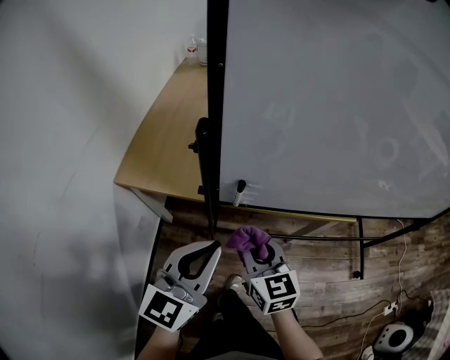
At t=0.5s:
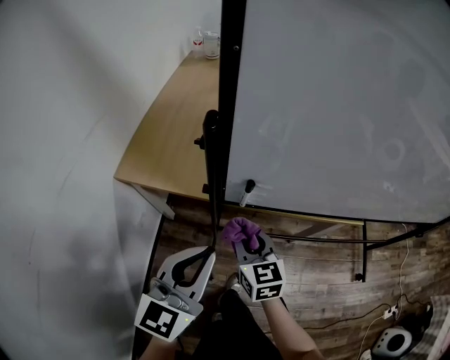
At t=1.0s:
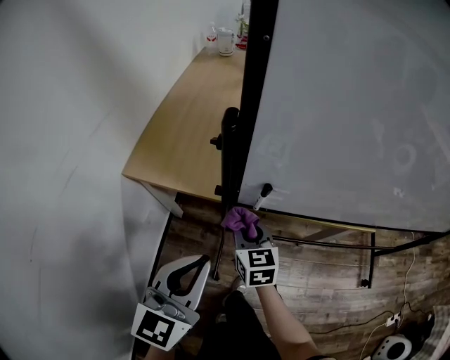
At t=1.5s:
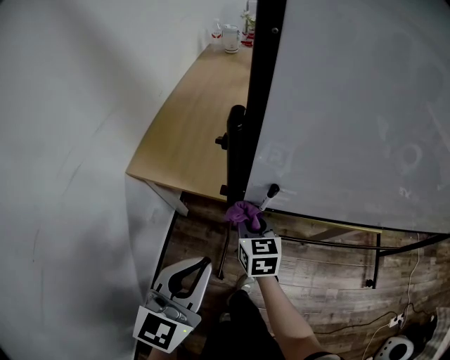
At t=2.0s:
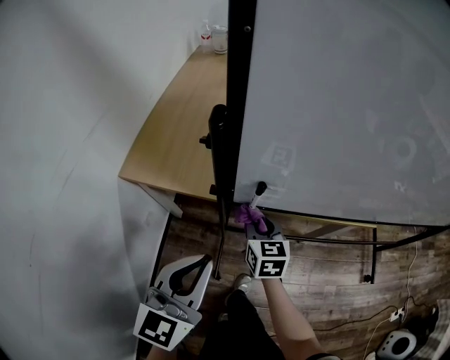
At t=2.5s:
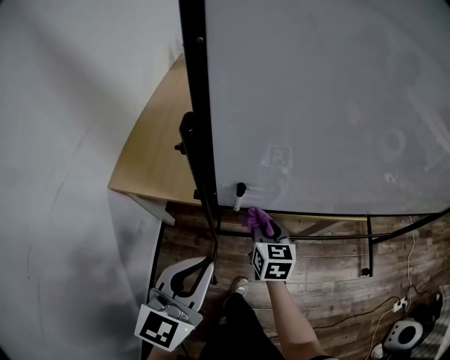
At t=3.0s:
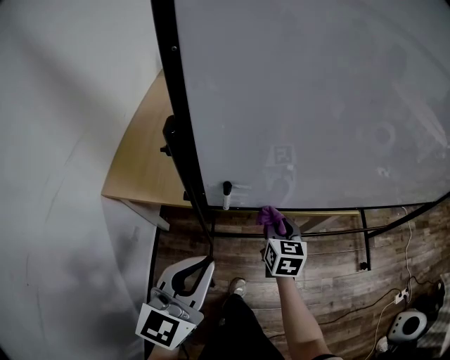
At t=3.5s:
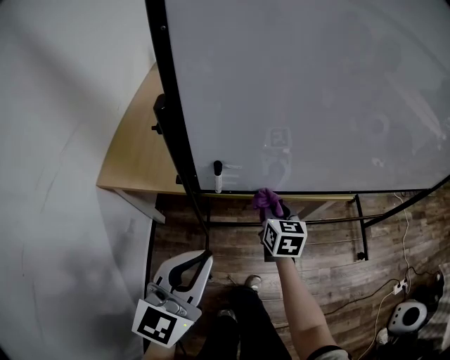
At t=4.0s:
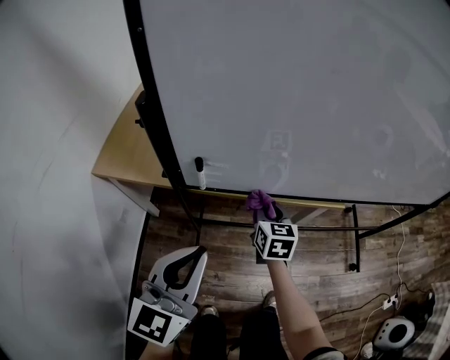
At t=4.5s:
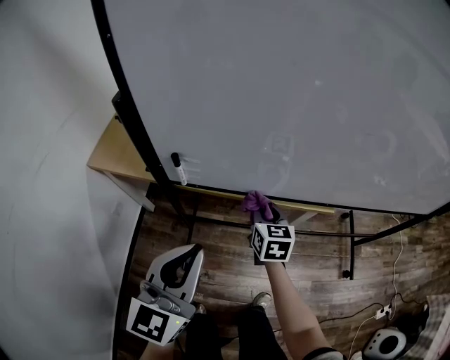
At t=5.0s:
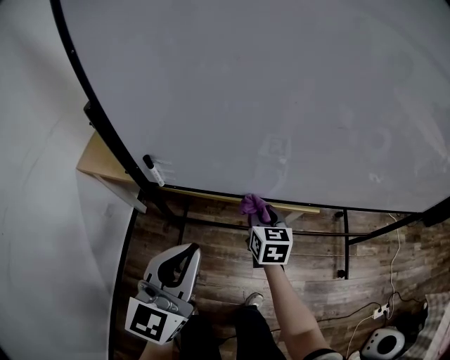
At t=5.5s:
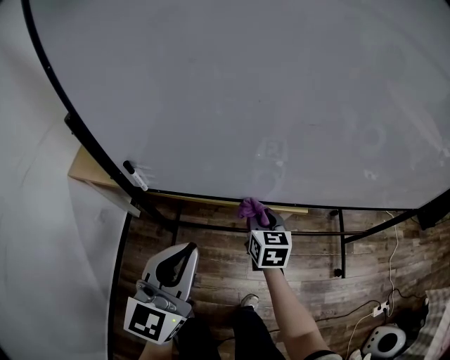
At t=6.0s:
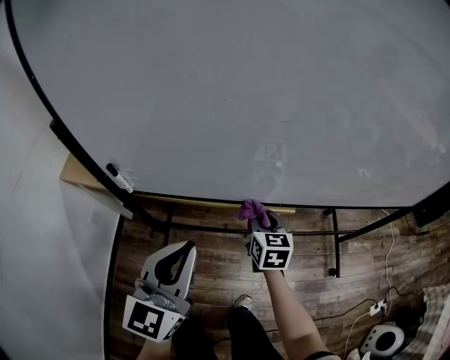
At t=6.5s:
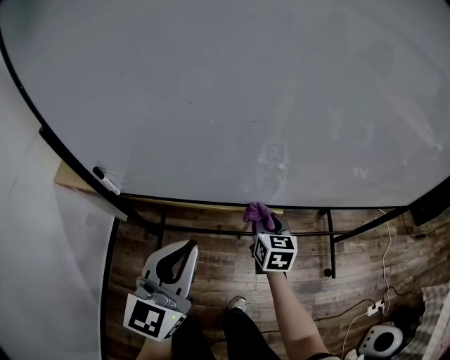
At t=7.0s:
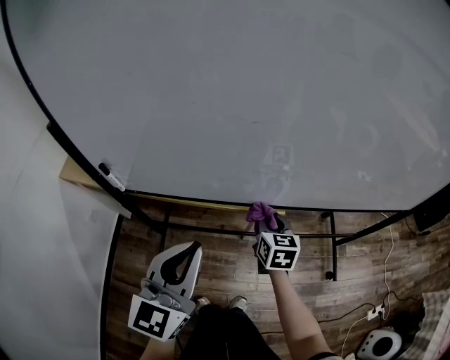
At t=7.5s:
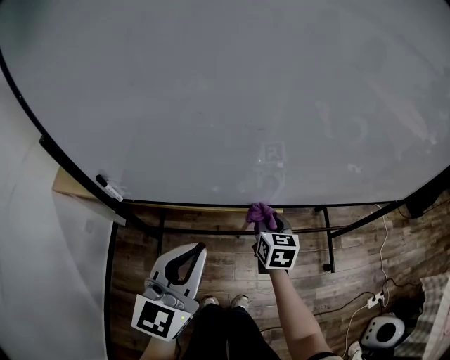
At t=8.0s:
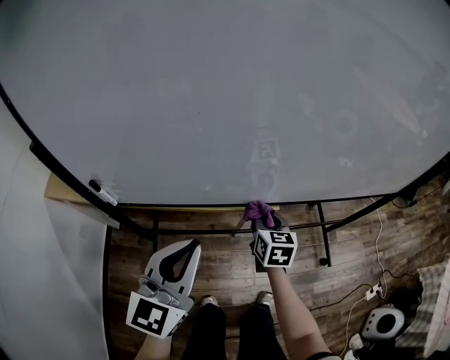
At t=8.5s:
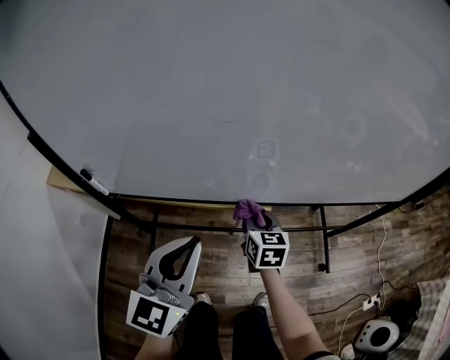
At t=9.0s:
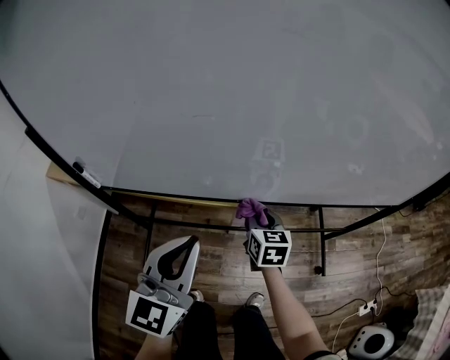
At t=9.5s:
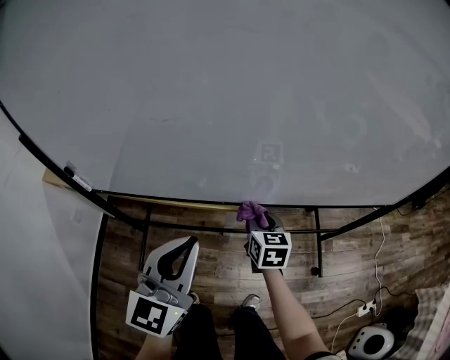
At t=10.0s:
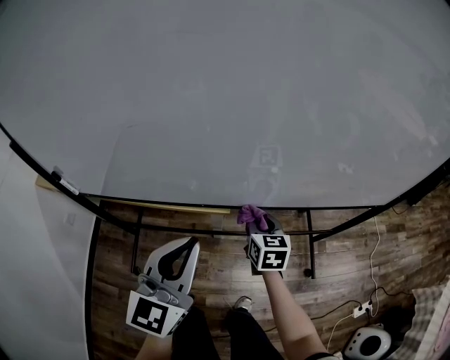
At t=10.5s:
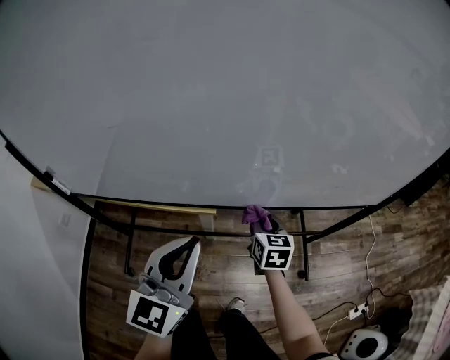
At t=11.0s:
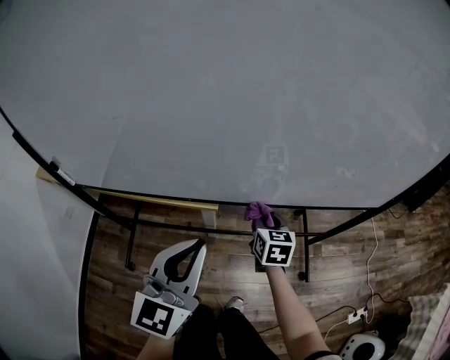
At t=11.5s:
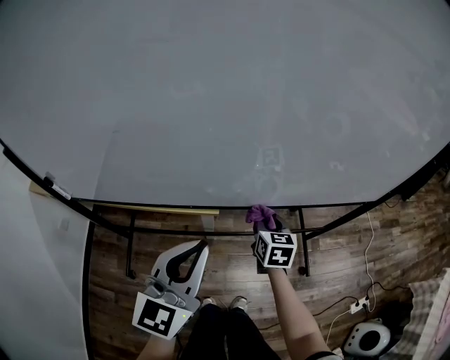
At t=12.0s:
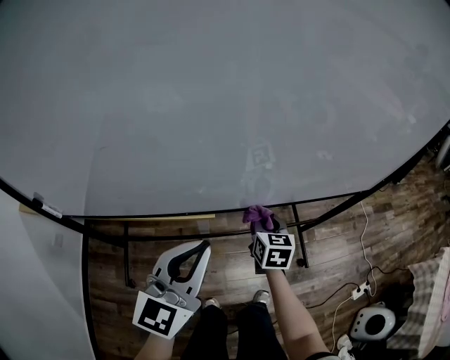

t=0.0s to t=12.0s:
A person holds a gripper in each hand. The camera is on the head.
t=0.0s to t=2.0s: The left gripper ends up about 5 cm from where it was. The right gripper heads downward and forward, covering some 15 cm.
t=2.0s to t=4.0s: The right gripper moves to the right, some 15 cm; the left gripper is displaced to the right by about 10 cm.
t=4.0s to t=6.0s: The two grippers go roughly 20 cm to the right.
t=6.0s to t=8.0s: The right gripper goes about 5 cm to the right.
t=8.0s to t=10.0s: Both grippers travel together to the right, approximately 15 cm.
t=10.0s to t=12.0s: The grippers stay close to where they were, moving slightly.

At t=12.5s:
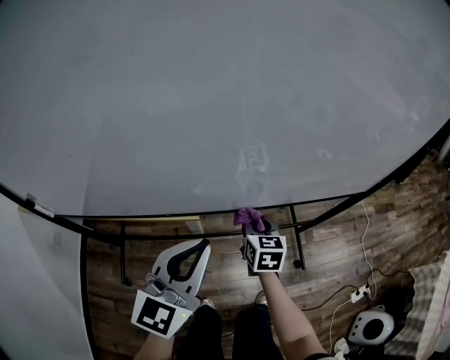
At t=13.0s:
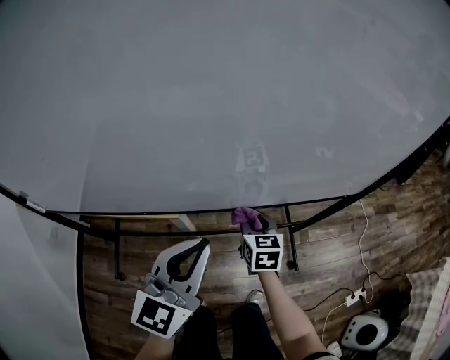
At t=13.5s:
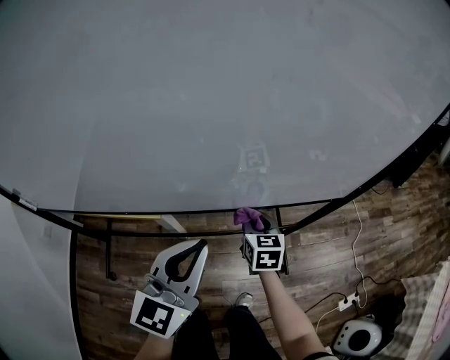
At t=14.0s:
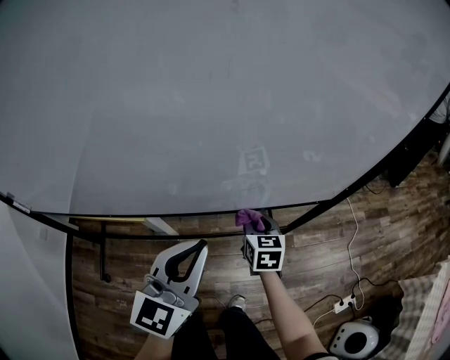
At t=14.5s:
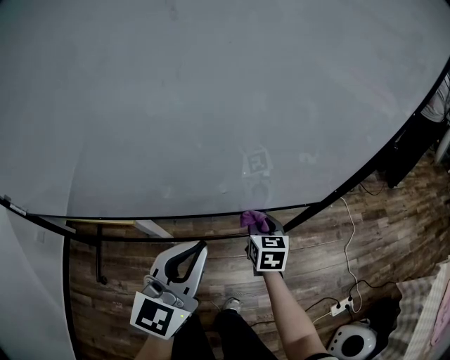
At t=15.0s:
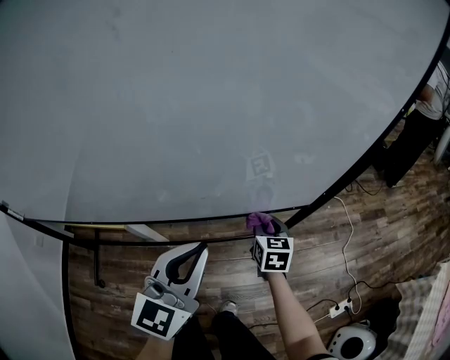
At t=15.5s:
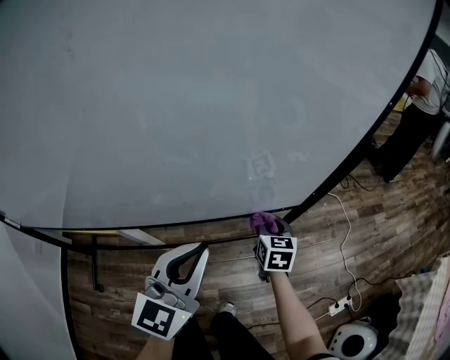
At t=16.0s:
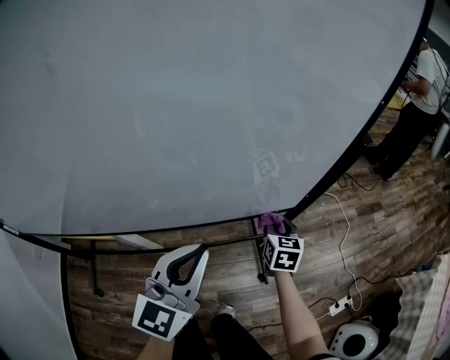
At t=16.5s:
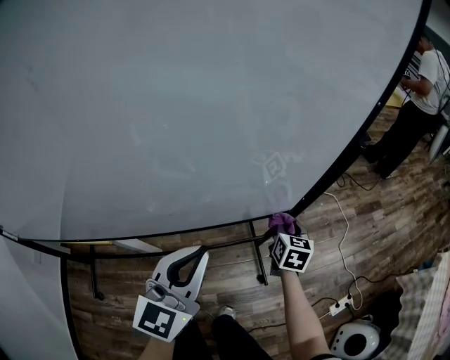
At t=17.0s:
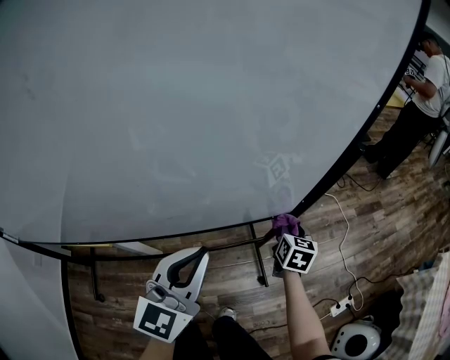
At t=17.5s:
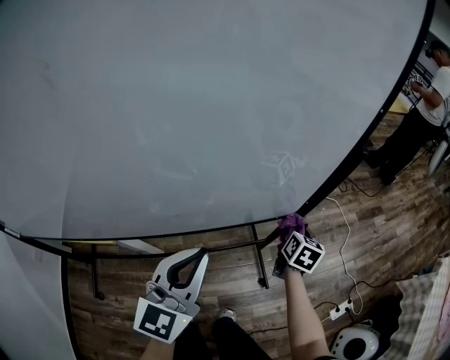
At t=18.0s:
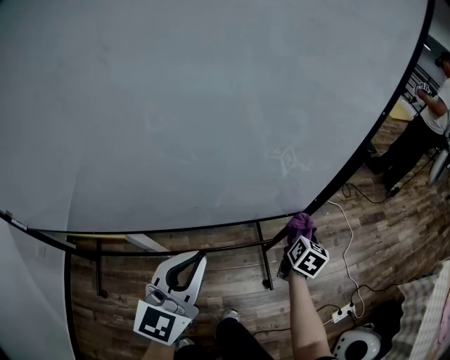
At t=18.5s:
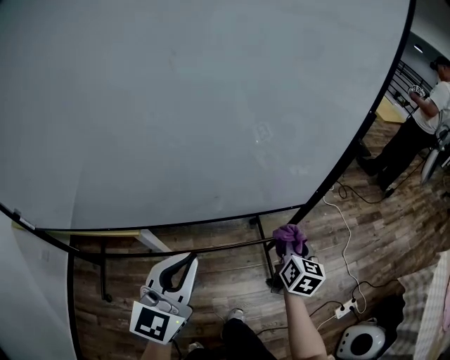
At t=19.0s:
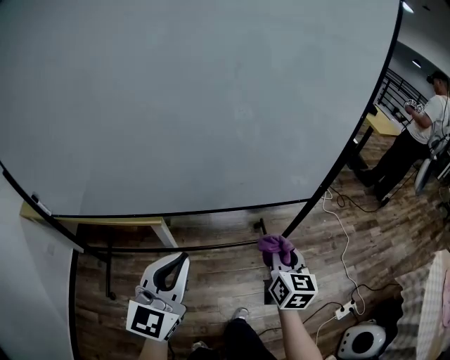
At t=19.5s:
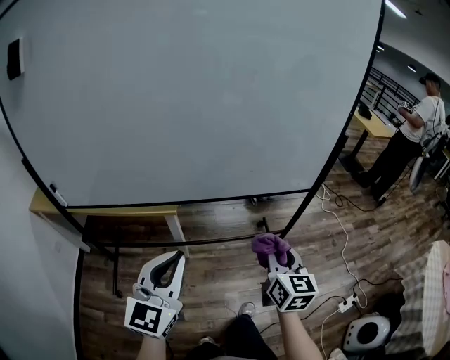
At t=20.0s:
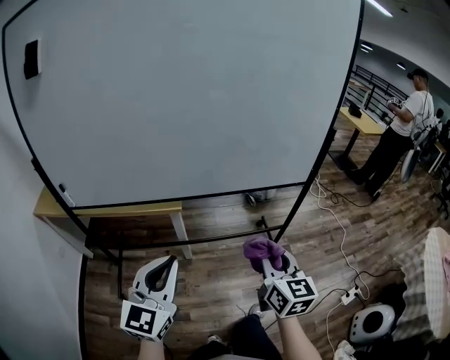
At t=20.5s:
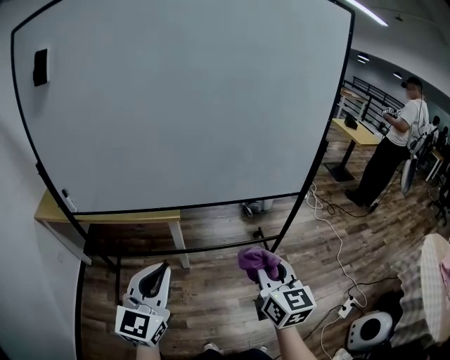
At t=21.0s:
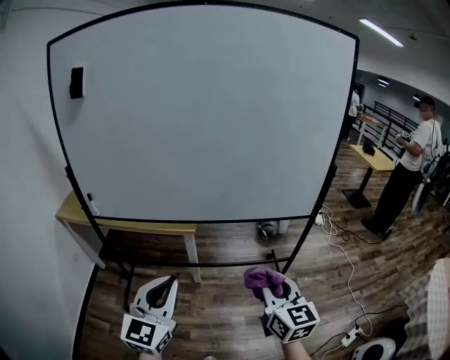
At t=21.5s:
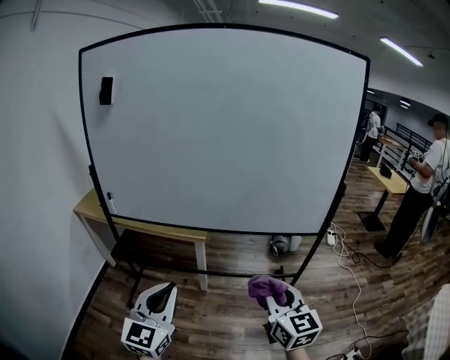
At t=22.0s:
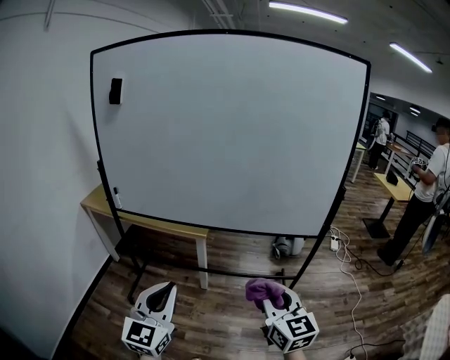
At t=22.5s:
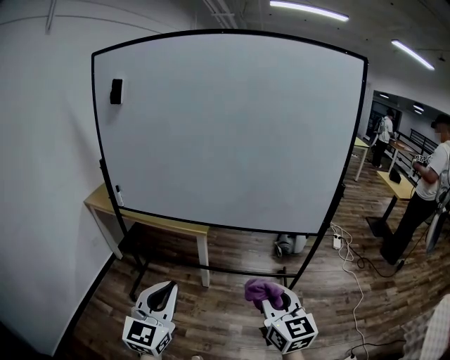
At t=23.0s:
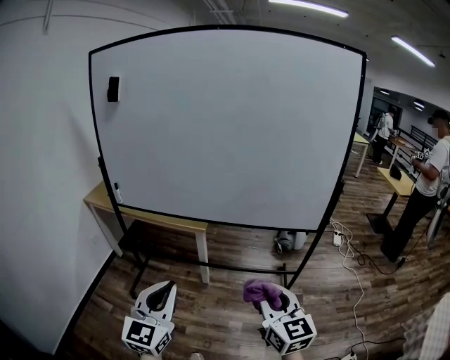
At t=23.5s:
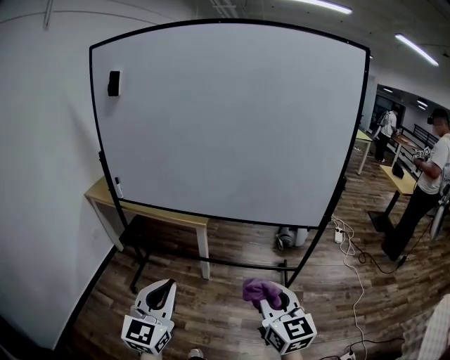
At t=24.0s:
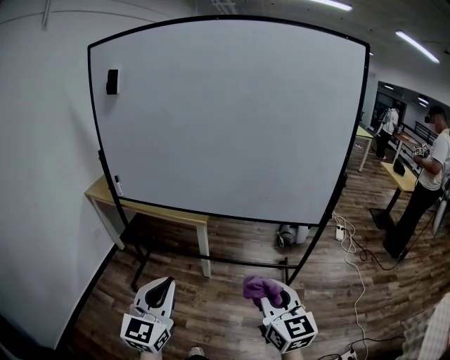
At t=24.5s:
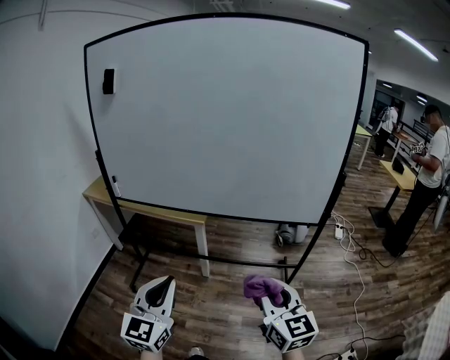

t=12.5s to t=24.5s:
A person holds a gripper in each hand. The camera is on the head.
t=12.5s to t=14.5s: The grippers both shift to the right by roughly 20 cm.
t=14.5s to t=16.5s: The right gripper shifts some 20 cm to the right. The left gripper goes about 10 cm to the right and forward.
t=16.5s to t=18.5s: The right gripper goes roughly 15 cm backward and upward; the left gripper travels backward and to the left by some 15 cm.
t=18.5s to t=20.5s: The left gripper is displaced backward and to the left by some 30 cm. Meanwhile the right gripper shifts some 40 cm backward, to the left and upward, and rotates some 30 degrees.
t=20.5s to t=22.5s: Both grippers travel together backward, some 10 cm. The right gripper changes its angle by about 20 degrees.
t=22.5s to t=24.5s: The grippers move only a little.

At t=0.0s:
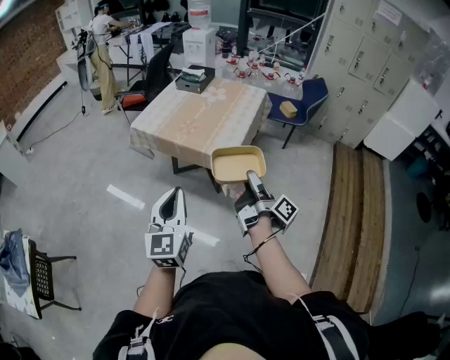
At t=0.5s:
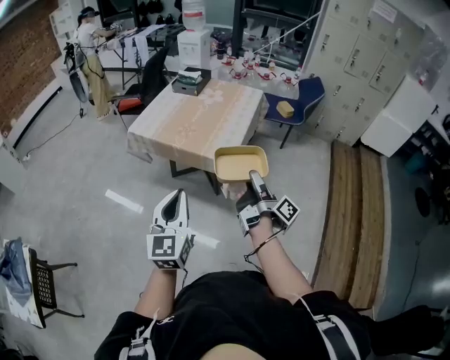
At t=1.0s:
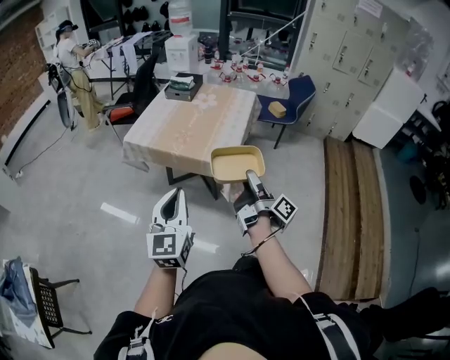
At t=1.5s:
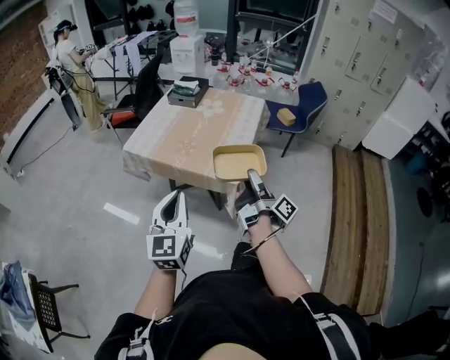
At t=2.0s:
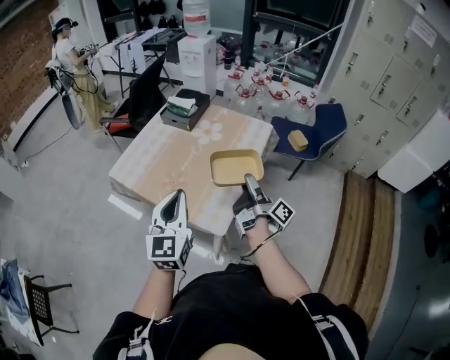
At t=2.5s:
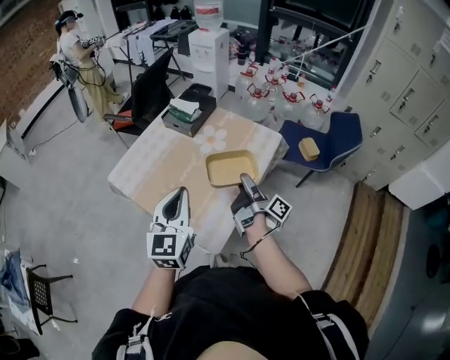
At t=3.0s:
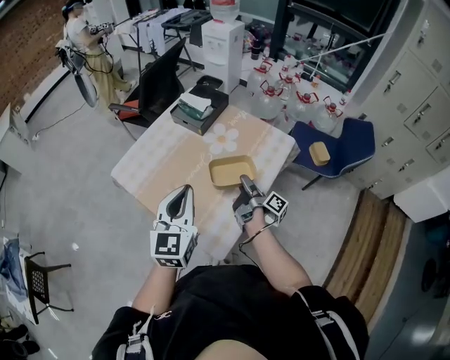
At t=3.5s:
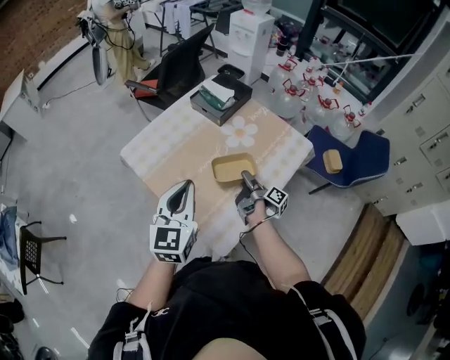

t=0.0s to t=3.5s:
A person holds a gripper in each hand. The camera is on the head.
t=0.0s to t=2.0s: The left gripper moves about 50 cm.
t=2.0s to t=3.5s: The left gripper moves some 20 cm.
